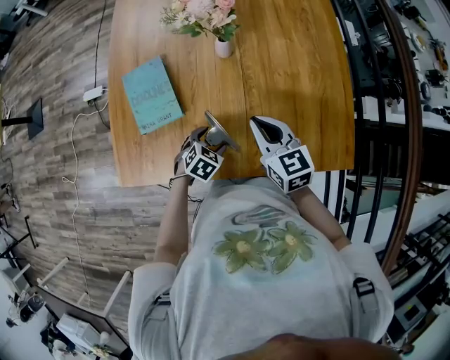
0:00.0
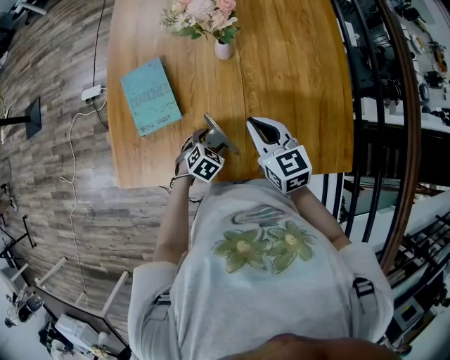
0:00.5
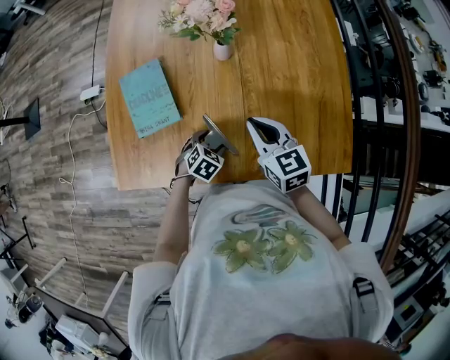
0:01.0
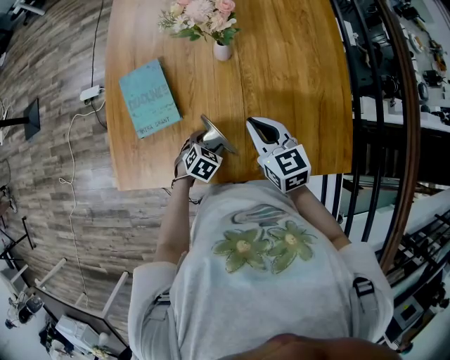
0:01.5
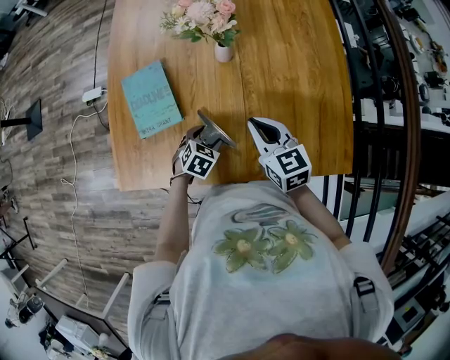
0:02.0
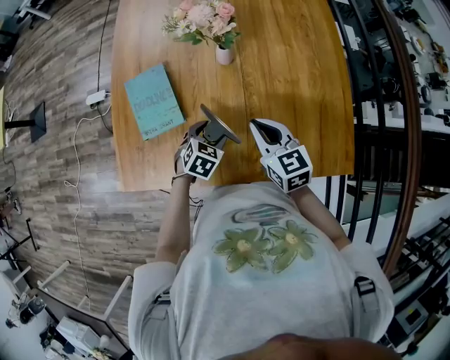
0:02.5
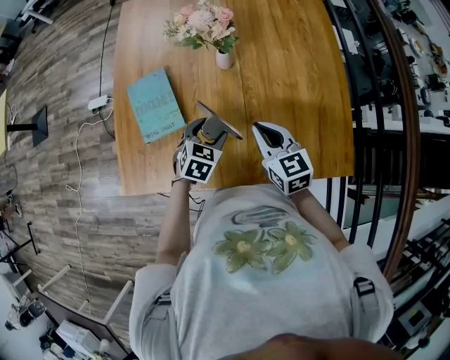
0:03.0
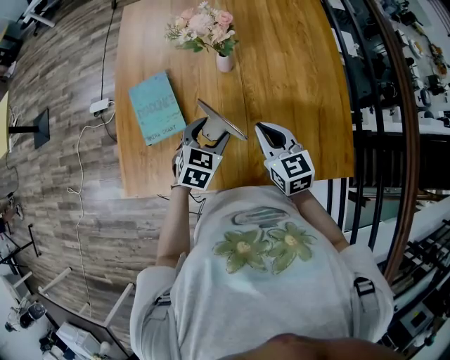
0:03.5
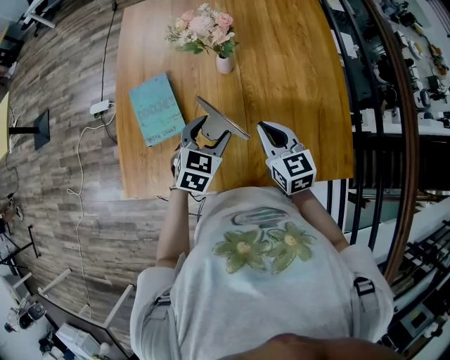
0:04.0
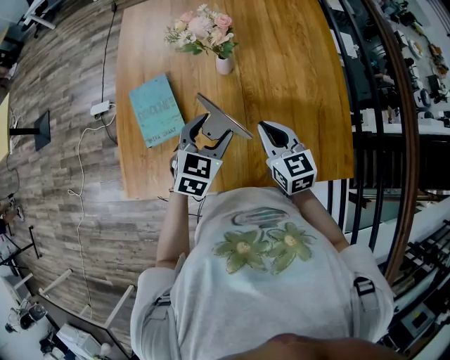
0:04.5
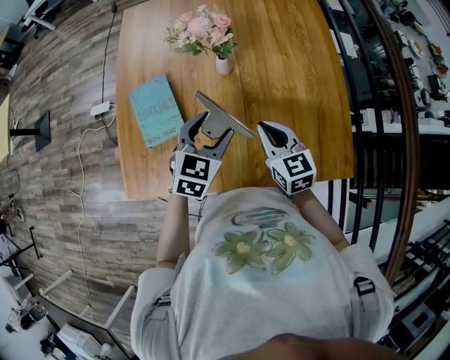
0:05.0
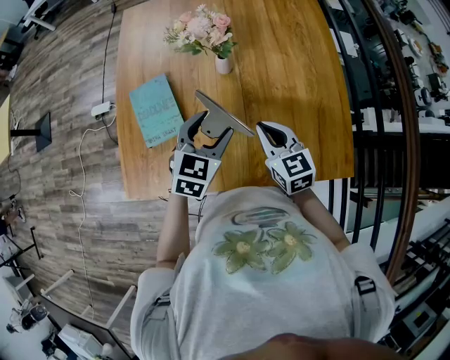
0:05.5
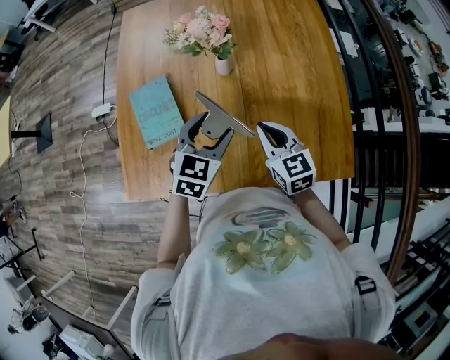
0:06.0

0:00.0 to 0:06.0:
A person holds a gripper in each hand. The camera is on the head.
0:00.0 to 0:02.0: The grippers stay close to where they were, moving slightly.
0:02.0 to 0:04.0: The left gripper shifts about 15 cm upward, and swivels about 20 degrees.
0:04.0 to 0:06.0: The left gripper is displaced upward by about 5 cm.

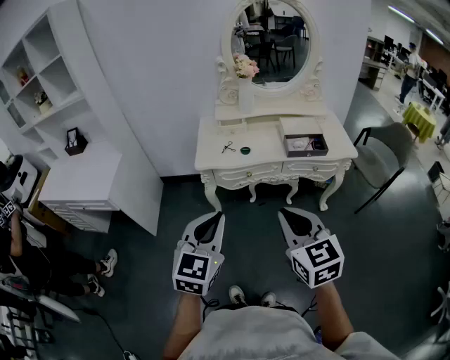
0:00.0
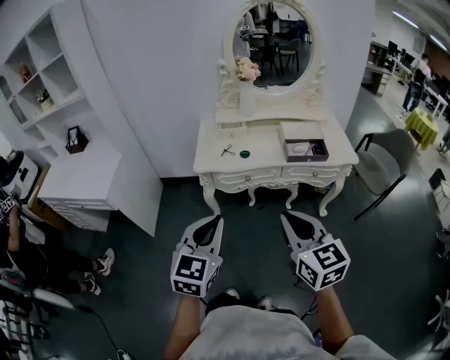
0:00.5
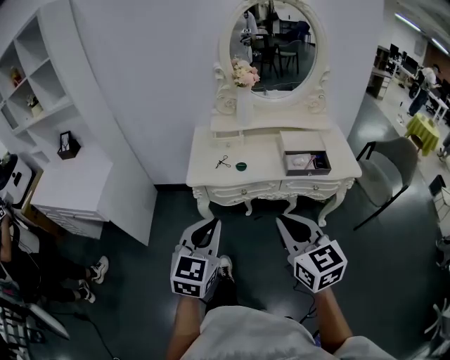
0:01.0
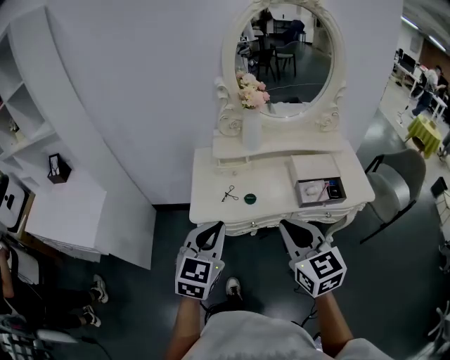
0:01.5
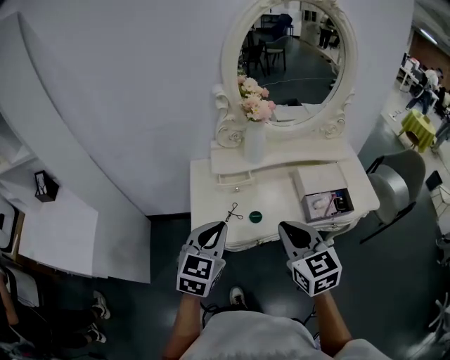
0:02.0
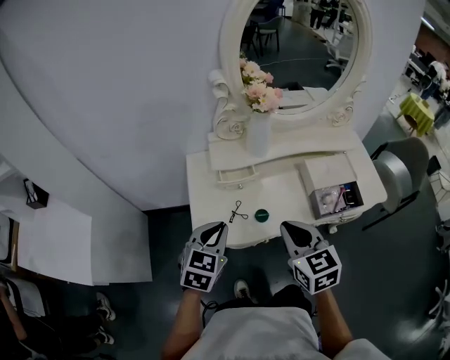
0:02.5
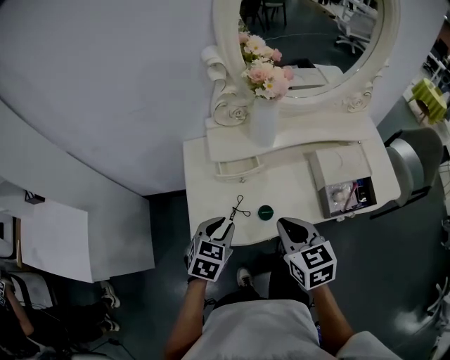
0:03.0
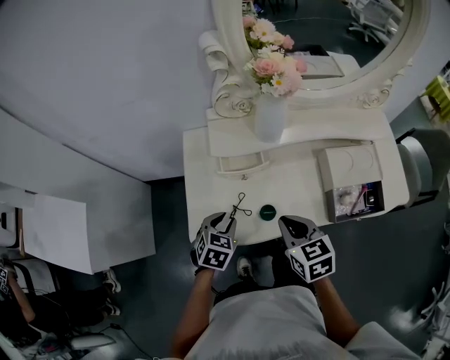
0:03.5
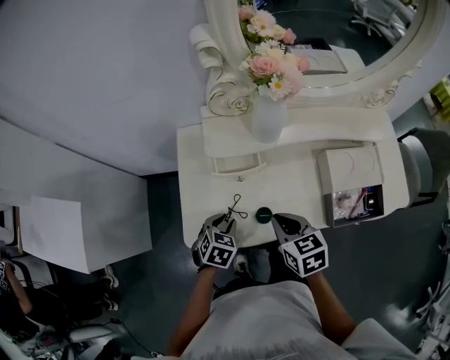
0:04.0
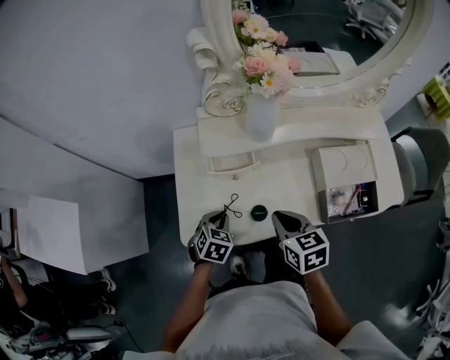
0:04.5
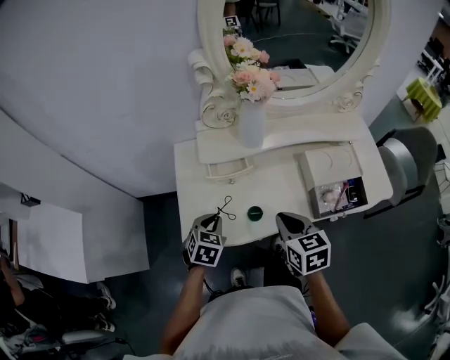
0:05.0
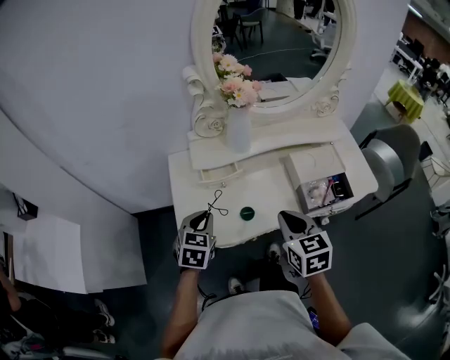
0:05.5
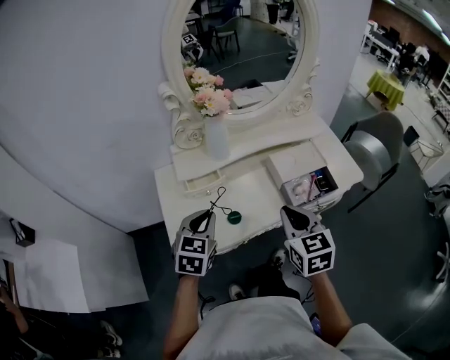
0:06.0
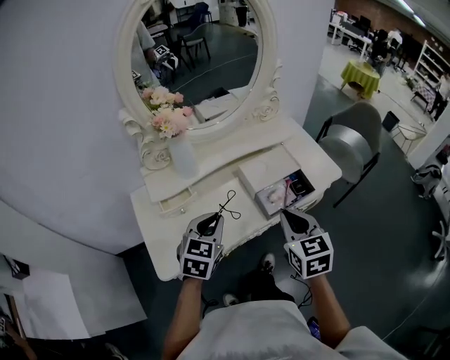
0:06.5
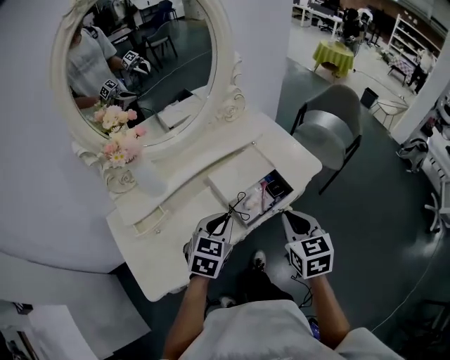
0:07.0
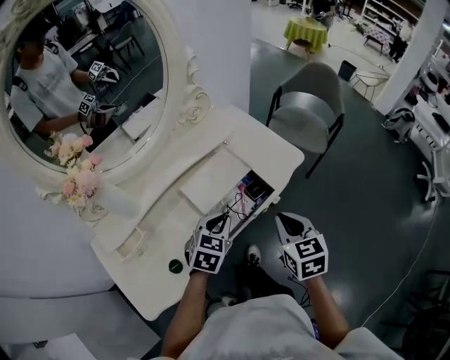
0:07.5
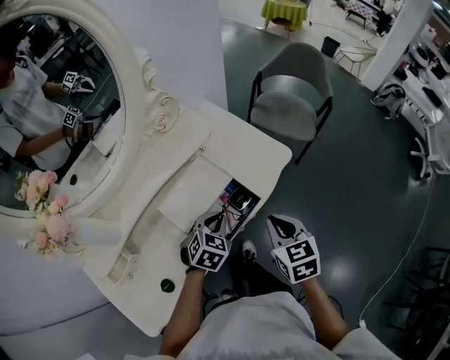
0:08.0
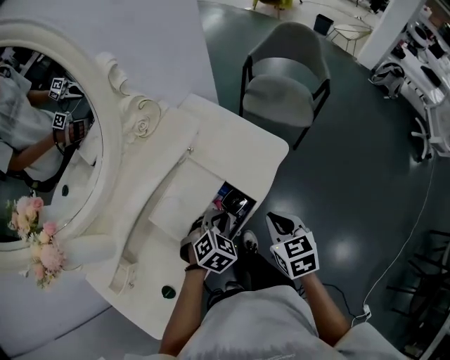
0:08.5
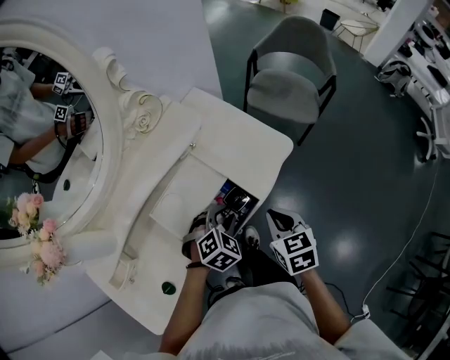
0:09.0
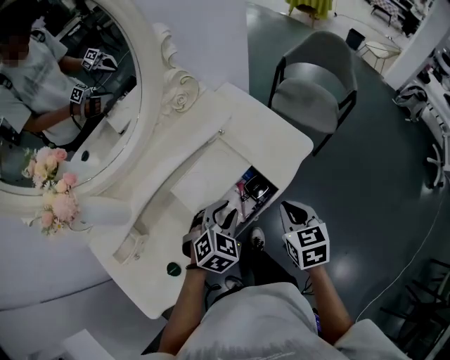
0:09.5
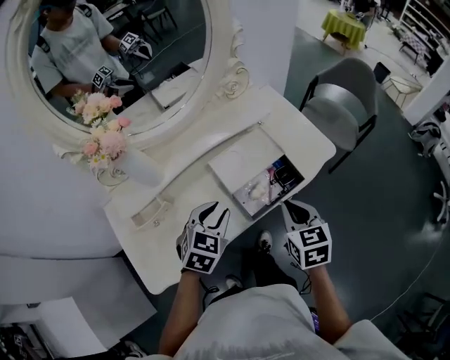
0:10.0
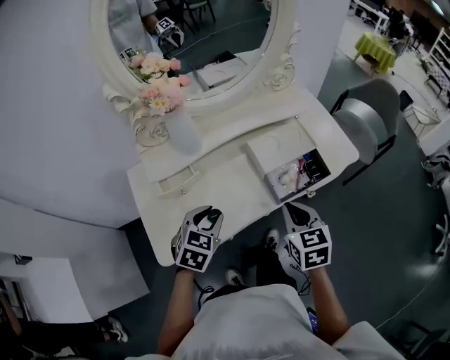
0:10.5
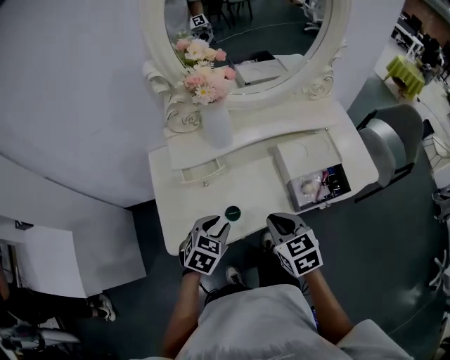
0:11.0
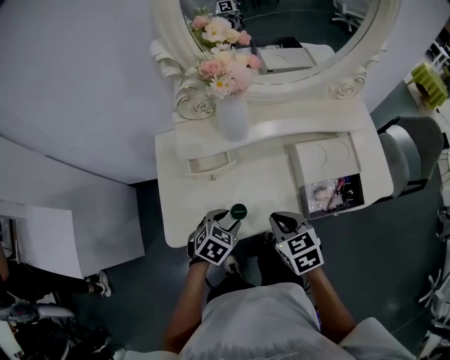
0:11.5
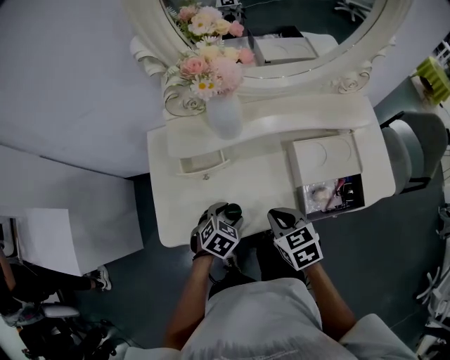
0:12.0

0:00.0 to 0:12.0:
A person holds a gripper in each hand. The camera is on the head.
0:00.0 to 0:02.0: Both grippers travel together forward, approximately 40 cm.
0:02.0 to 0:04.0: The two grippers go roughly 30 cm downward and forward. The right gripper rotates roughly 30 degrees. Meanwhile the left gripper angles its fingers downward, by some 40 degrees, and opens its fingers.
0:04.0 to 0:06.0: The left gripper is displaced upward by some 20 cm, and turns by about 30 degrees; the right gripper is displaced upward, to the right and backward by roughly 20 cm, and turns by approximately 30 degrees.
0:06.0 to 0:08.0: The right gripper shifts by roughly 30 cm, and changes its angle by about 30 degrees. Meanwhile the left gripper moves about 40 cm, and rotates some 50 degrees.
0:08.0 to 0:10.0: The left gripper travels to the left, backward and upward by approximately 20 cm, while the right gripper moves to the left, roughly 10 cm.
0:10.0 to 0:12.0: The left gripper ends up approximately 25 cm from where it was, swivels some 30 degrees, and opens its fingers; the right gripper shifts by about 25 cm, and changes its angle by roughly 40 degrees.

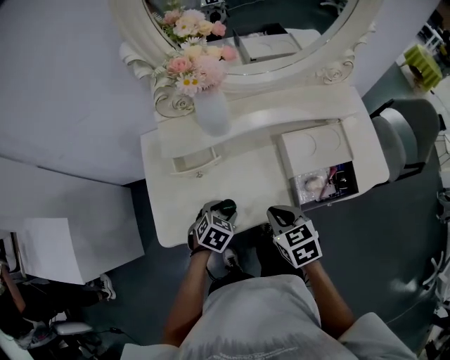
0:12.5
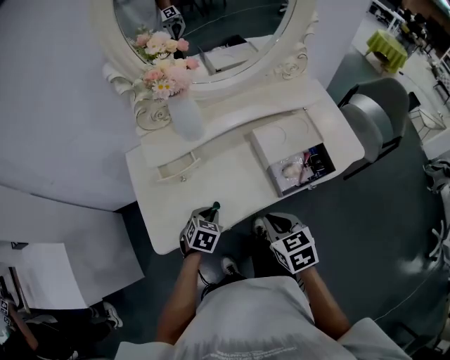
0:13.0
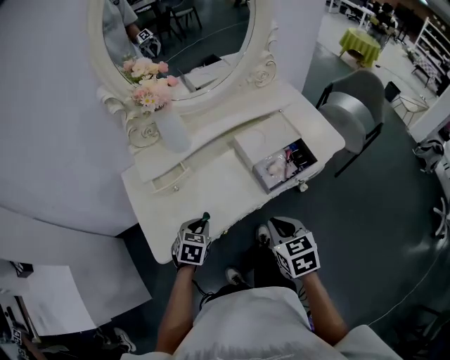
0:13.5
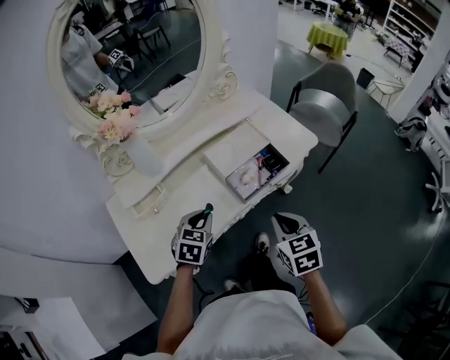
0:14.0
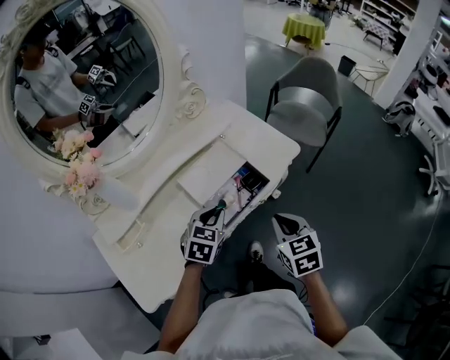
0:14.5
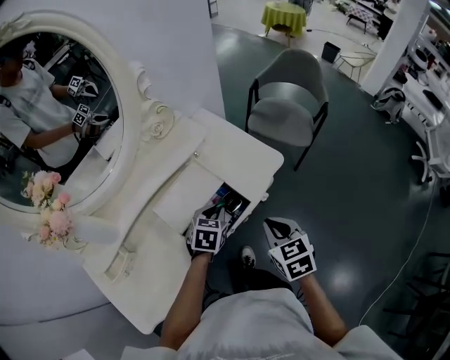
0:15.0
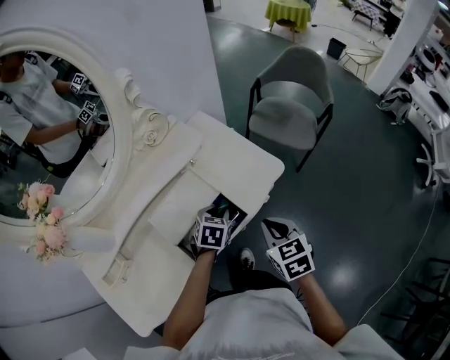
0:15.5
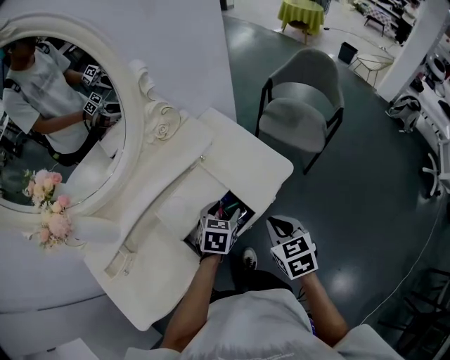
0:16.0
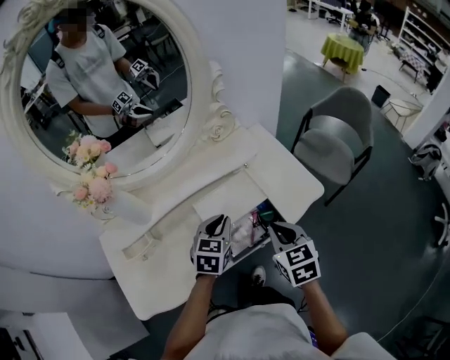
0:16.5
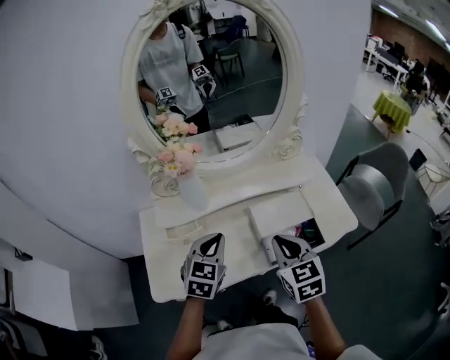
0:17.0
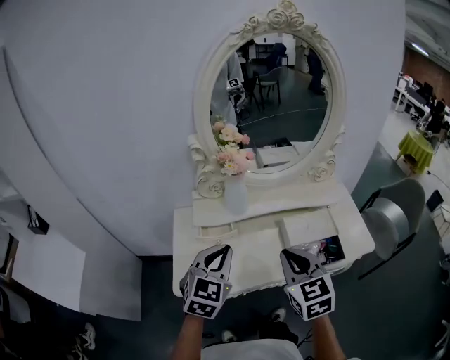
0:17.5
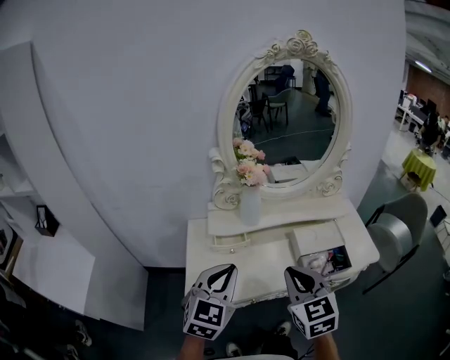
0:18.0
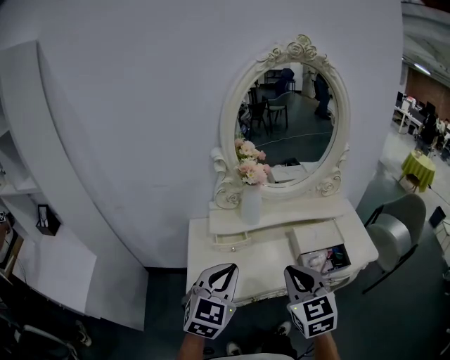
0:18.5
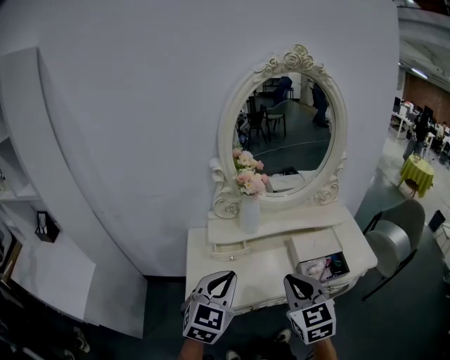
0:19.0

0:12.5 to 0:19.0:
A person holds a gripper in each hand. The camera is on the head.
0:12.5 to 0:14.5: The right gripper changes place by some 30 cm, and swivels some 40 degrees, while the left gripper moves approximately 30 cm, changes its angle by some 30 degrees, and closes up.
0:14.5 to 0:17.0: The right gripper changes place by approximately 20 cm, and changes its angle by some 30 degrees. The left gripper moves some 20 cm, rotates some 30 degrees, and opens, then closes once more.
0:17.0 to 0:19.0: The two grippers go approximately 25 cm backward, to the left and upward.

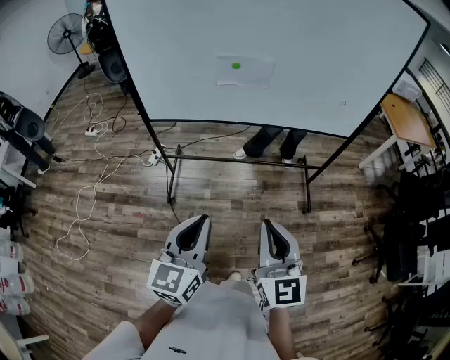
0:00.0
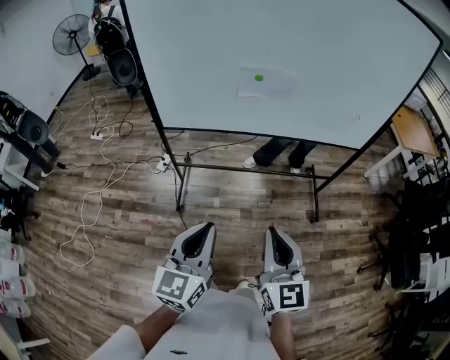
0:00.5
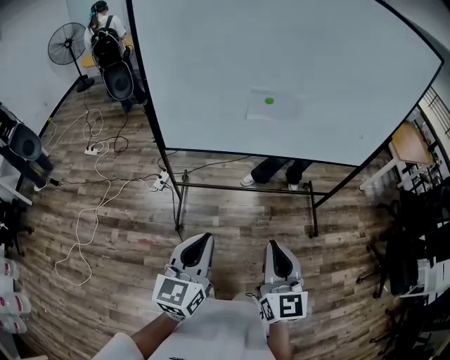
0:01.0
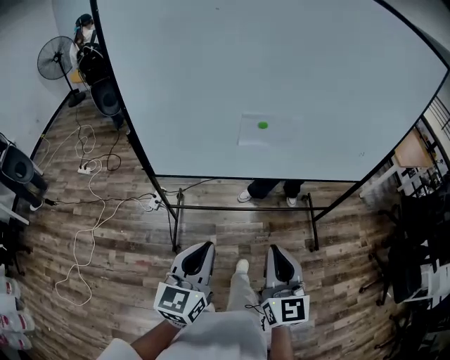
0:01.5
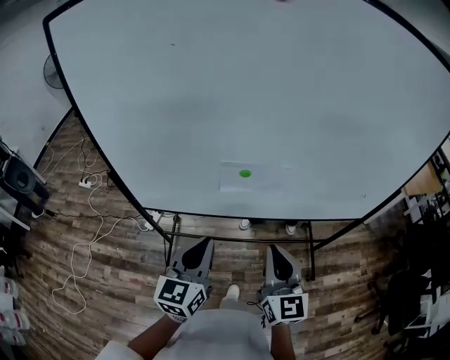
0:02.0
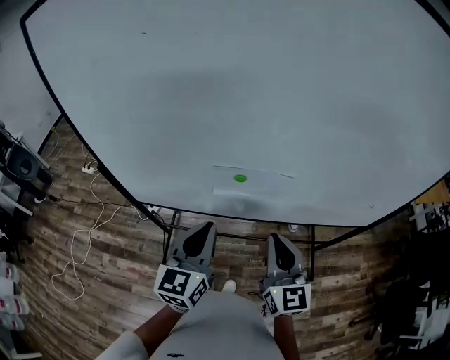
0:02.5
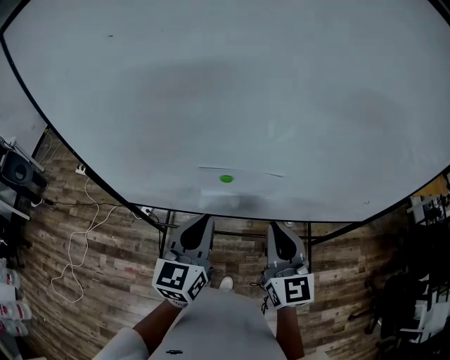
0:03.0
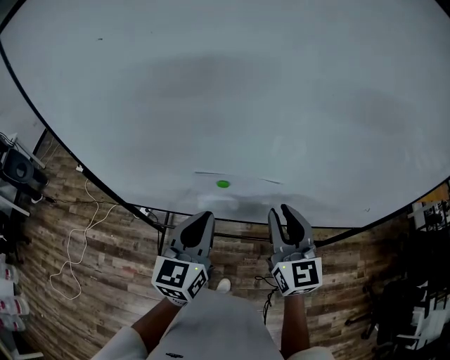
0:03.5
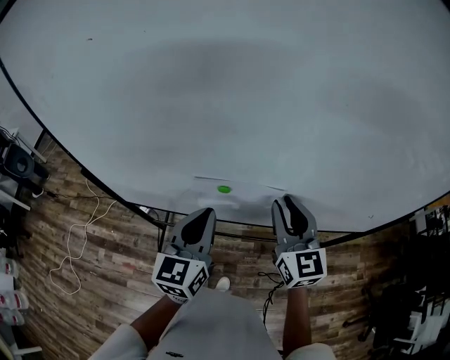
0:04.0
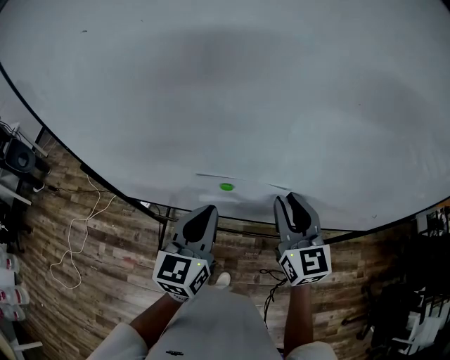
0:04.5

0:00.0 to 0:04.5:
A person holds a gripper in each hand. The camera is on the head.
0:00.0 to 0:02.0: Both grippers move forward, roughly 35 cm.
0:02.0 to 0:04.5: The right gripper goes about 20 cm forward, while the left gripper heads forward and to the right, covering approximately 15 cm.
